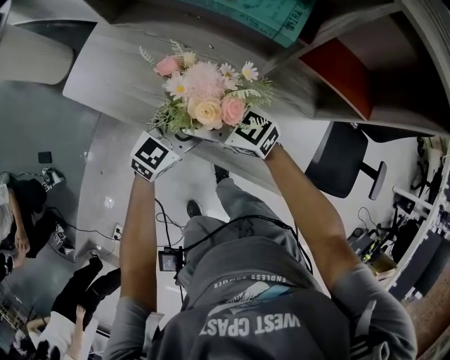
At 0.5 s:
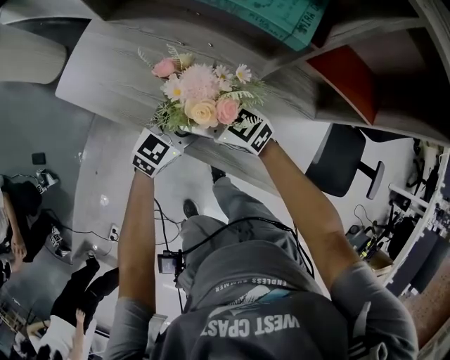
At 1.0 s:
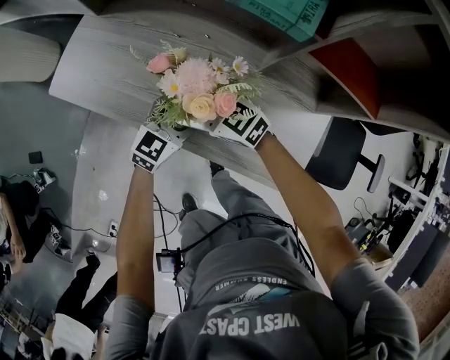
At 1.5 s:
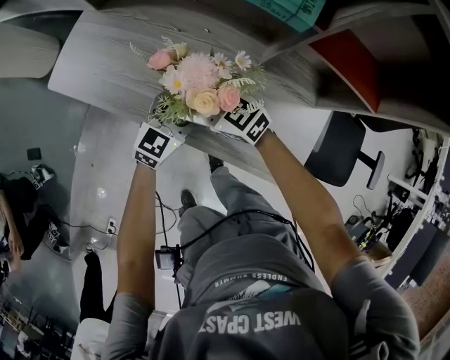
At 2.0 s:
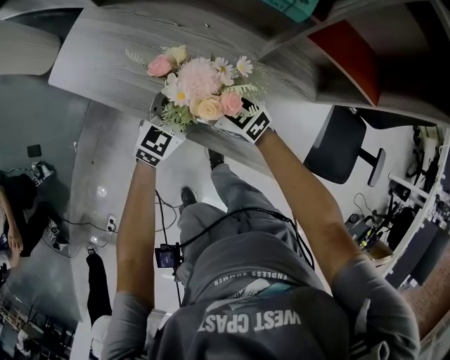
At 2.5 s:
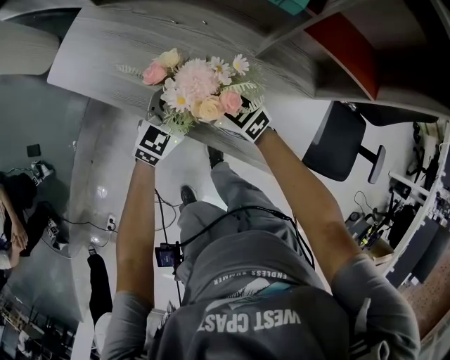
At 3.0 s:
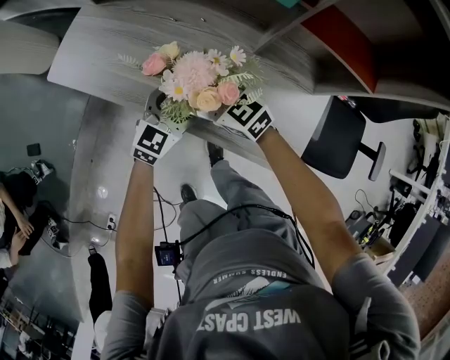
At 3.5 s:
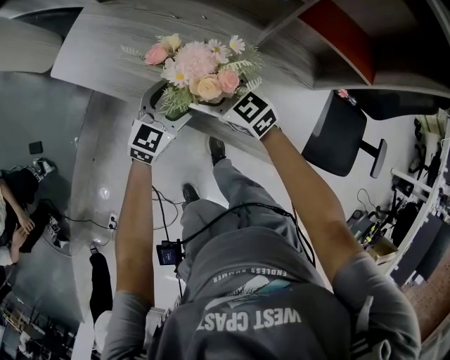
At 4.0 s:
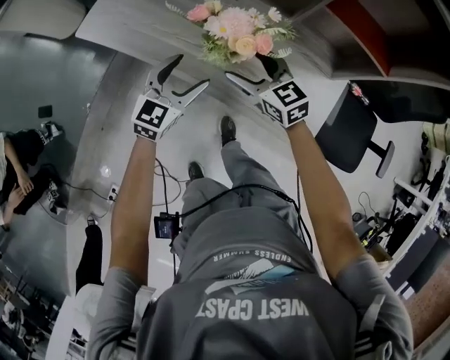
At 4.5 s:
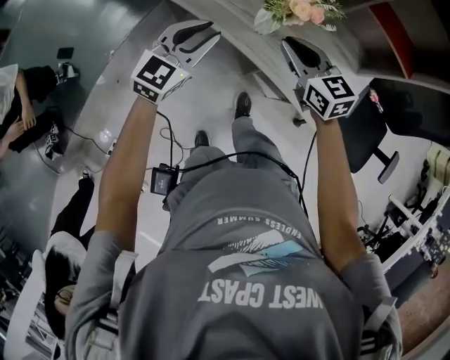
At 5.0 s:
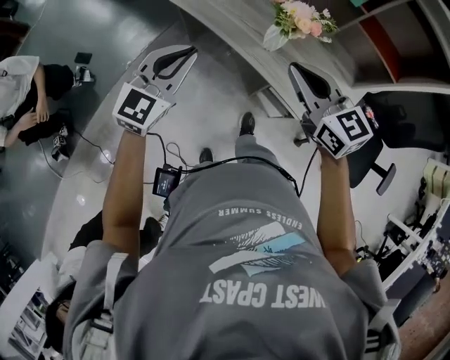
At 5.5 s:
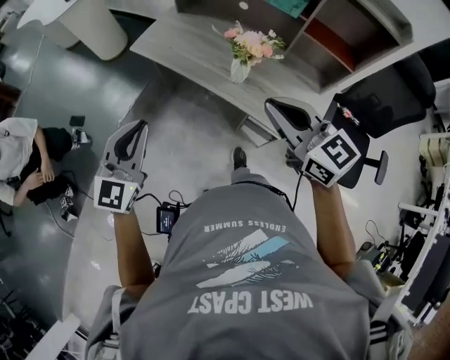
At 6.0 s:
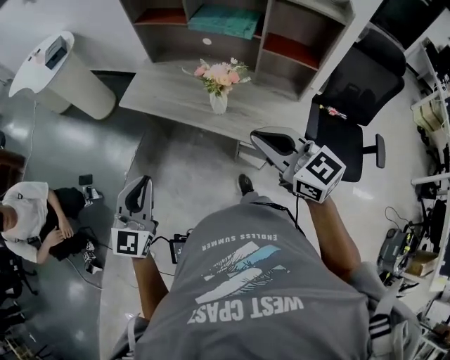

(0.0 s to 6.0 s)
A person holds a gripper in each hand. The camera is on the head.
0.0 s - 2.0 s: Both grippers travel together downward, approximately 5 cm.
2.0 s - 4.0 s: The left gripper is displaced to the left by approximately 10 cm. The right gripper heads to the right, covering approximately 5 cm.
4.0 s - 6.0 s: The left gripper moves upward, backward and to the left, about 35 cm, turns by about 20 degrees, and closes up. Meanwhile the right gripper heads upward and backward, covering about 35 cm, and closes its fingers.

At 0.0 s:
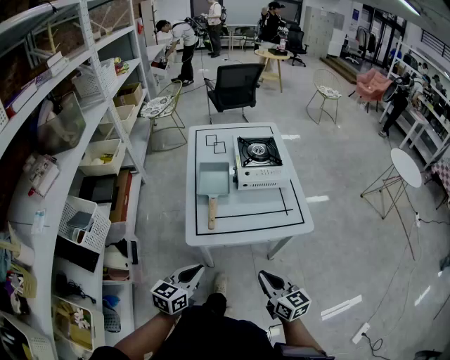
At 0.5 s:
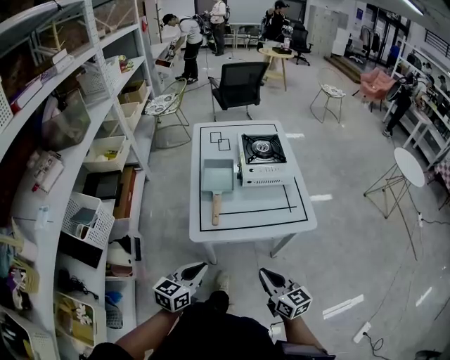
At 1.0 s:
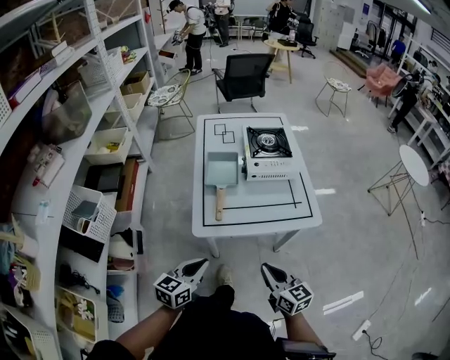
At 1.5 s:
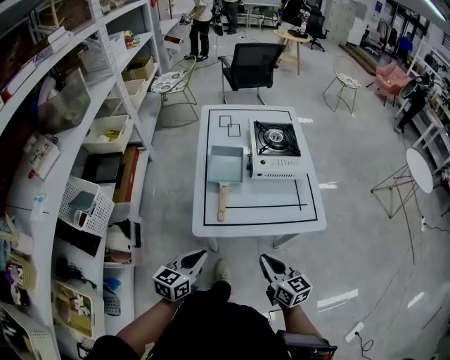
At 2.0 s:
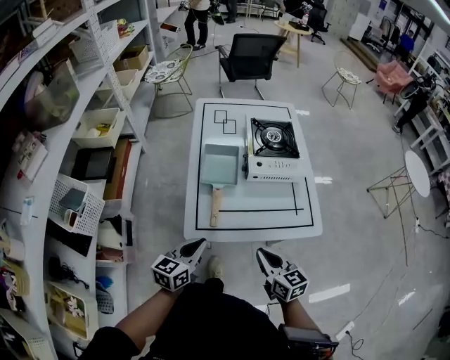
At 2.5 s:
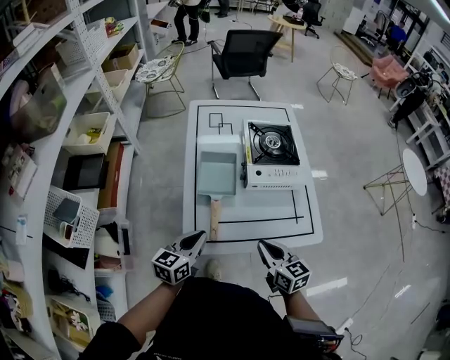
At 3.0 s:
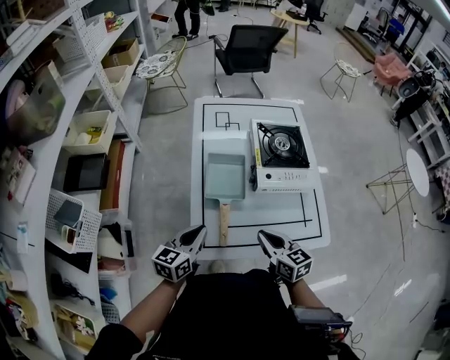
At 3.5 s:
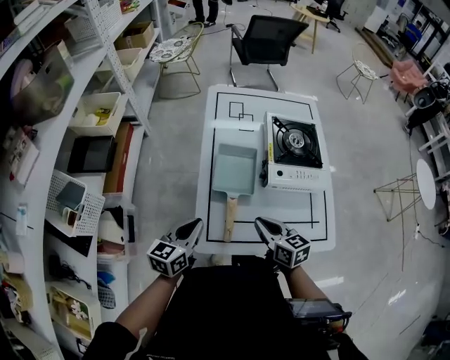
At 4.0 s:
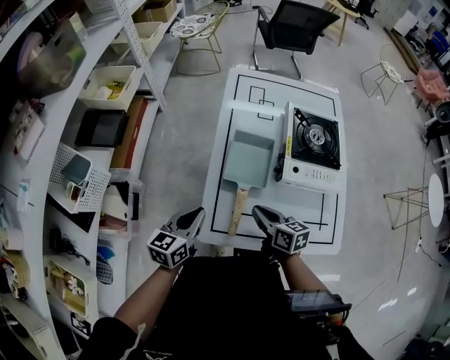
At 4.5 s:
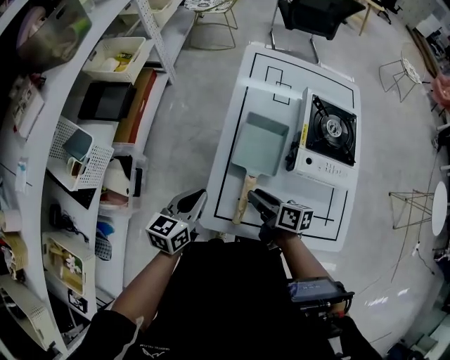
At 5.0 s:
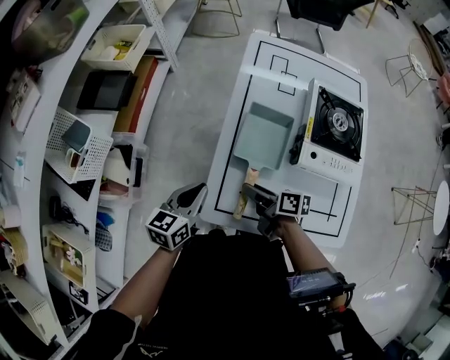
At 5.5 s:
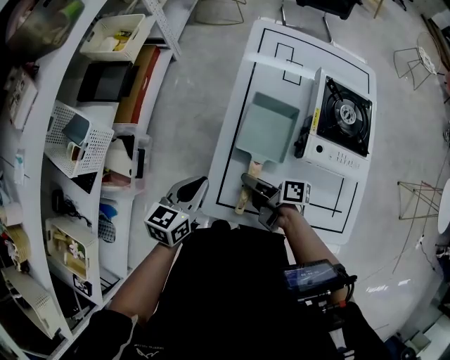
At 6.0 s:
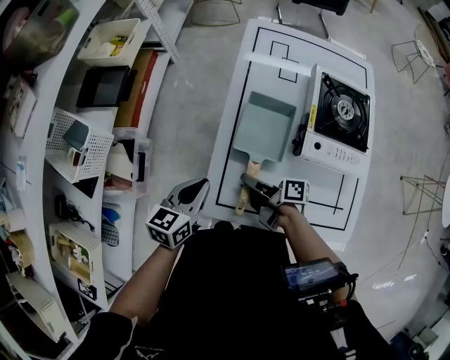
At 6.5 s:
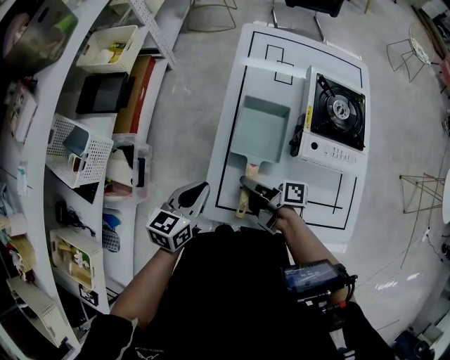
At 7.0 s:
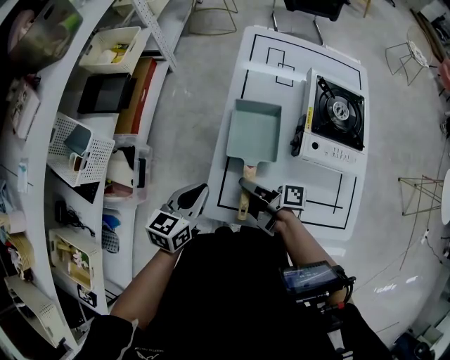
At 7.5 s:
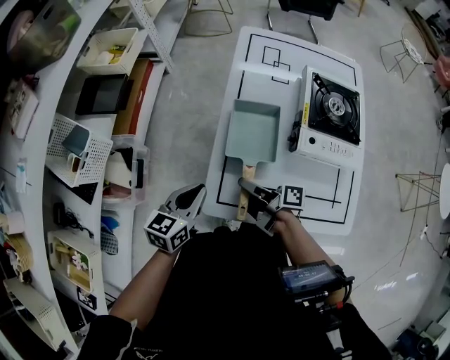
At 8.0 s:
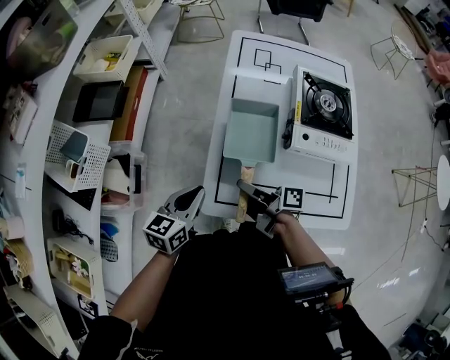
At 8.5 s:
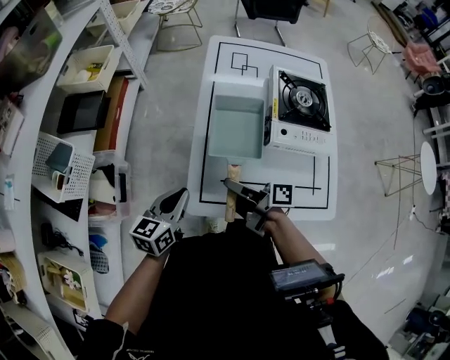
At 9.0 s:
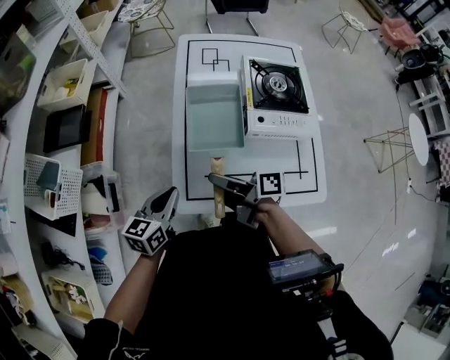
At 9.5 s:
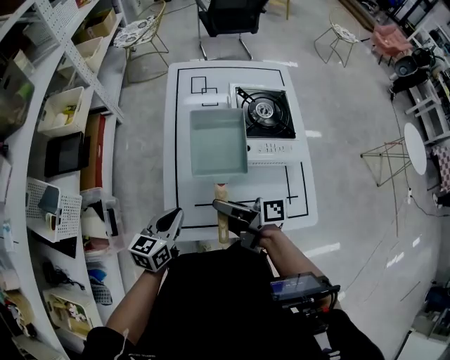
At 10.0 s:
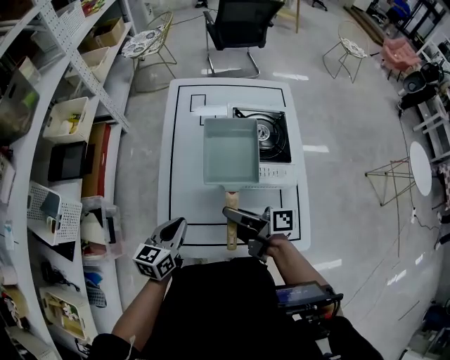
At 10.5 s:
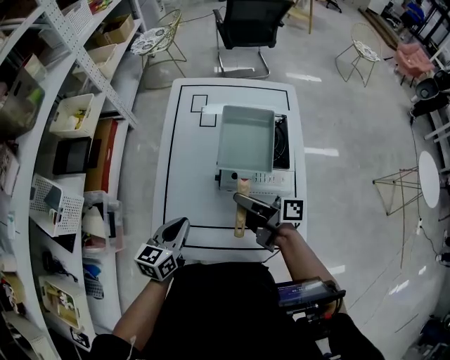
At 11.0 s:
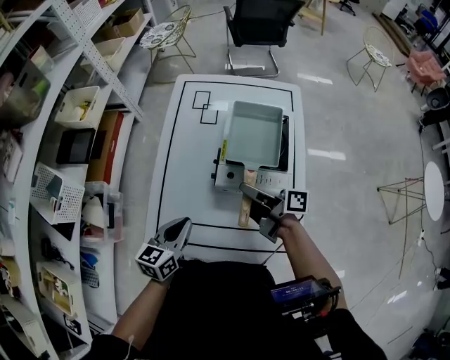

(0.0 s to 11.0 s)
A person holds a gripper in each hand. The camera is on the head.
0.0 s - 2.0 s: Both grippers travel together forward, some 10 cm.
2.0 s - 3.5 s: Both grippers move forward and to the left, roughly 15 cm.
3.5 s - 5.5 s: The right gripper travels downward, to the left and forward by some 15 cm, rolls clockwise, seen from behind, by some 50 degrees, and opens its fingers.
5.5 s - 7.5 s: The grippers move only a little.
7.5 s - 9.0 s: The right gripper shifts roughly 10 cm upward.
9.0 s - 11.0 s: The grippers both shift to the right by roughly 20 cm.

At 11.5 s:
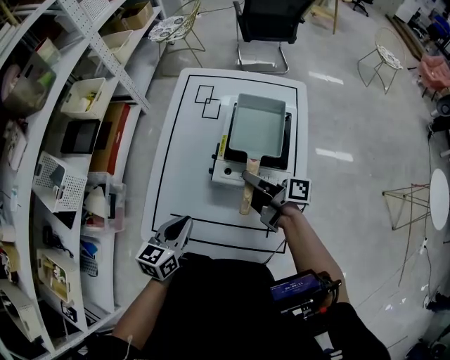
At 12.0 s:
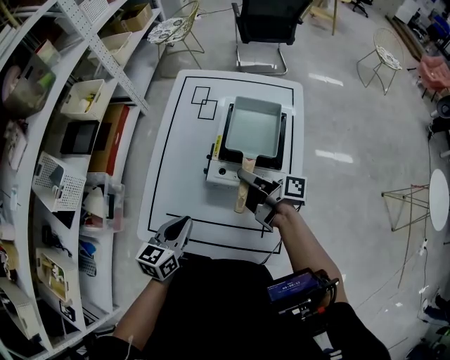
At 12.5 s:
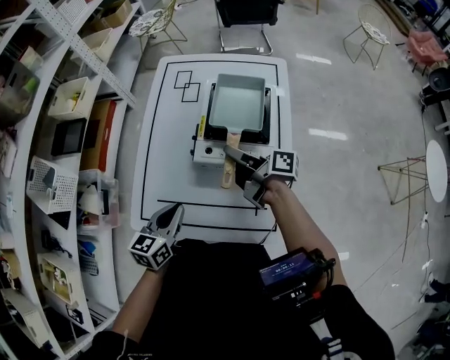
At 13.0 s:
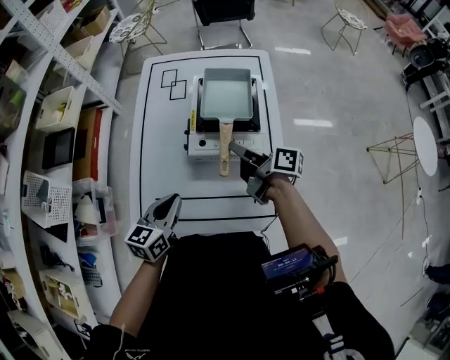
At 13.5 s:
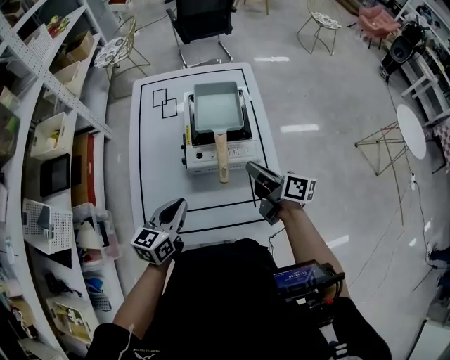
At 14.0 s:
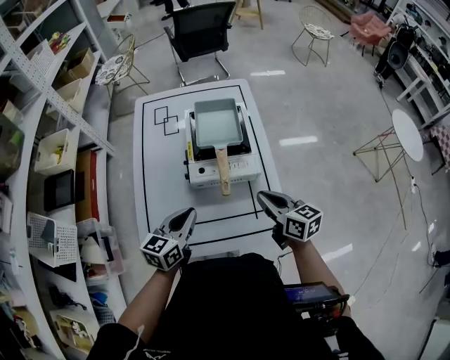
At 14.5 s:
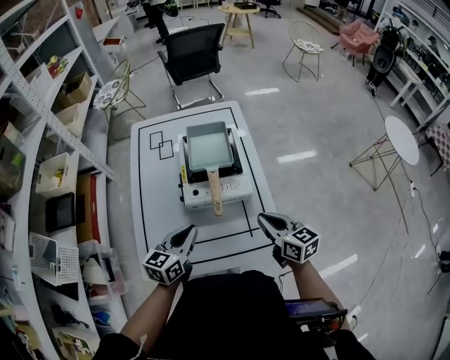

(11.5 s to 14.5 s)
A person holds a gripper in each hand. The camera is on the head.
11.5 s - 13.0 s: The grippers move only a little.
13.0 s - 14.5 s: The right gripper travels backward and to the right by roughly 15 cm, rotates around the line of its fingers by roughly 50 degrees, counterclockwise from behind, and closes up; the left gripper is displaced to the right by approximately 5 cm.

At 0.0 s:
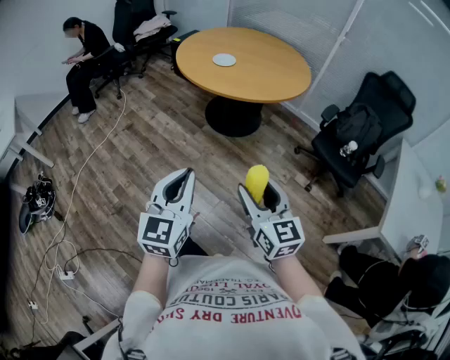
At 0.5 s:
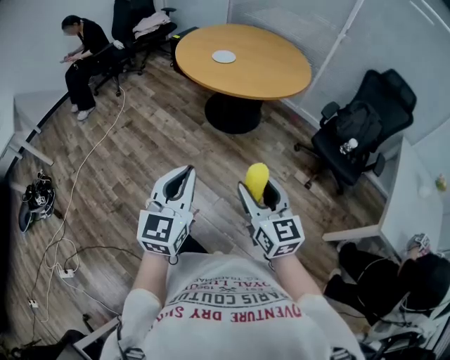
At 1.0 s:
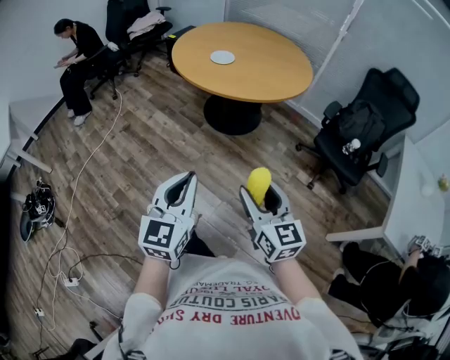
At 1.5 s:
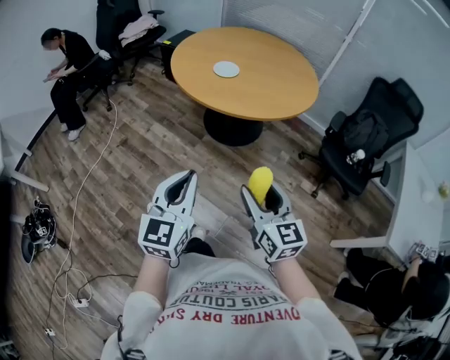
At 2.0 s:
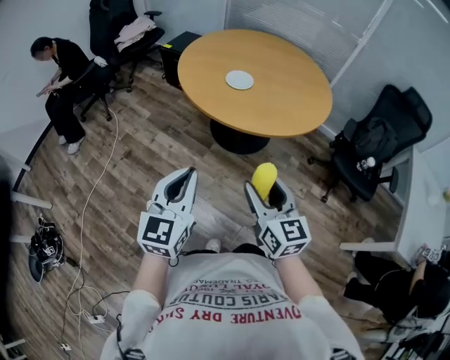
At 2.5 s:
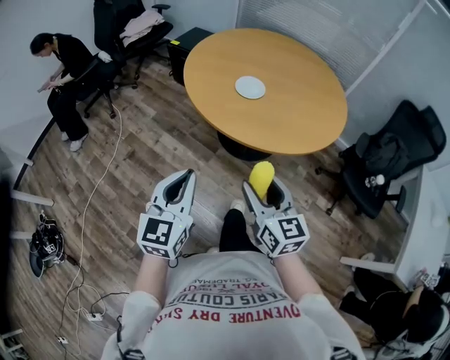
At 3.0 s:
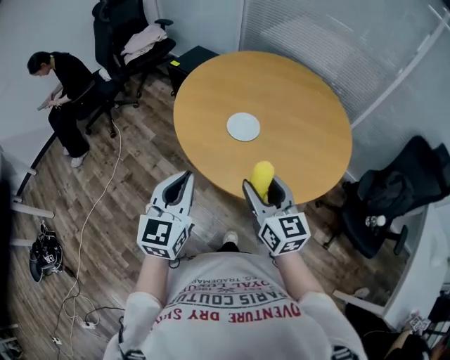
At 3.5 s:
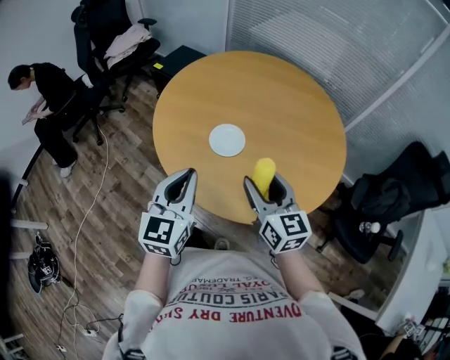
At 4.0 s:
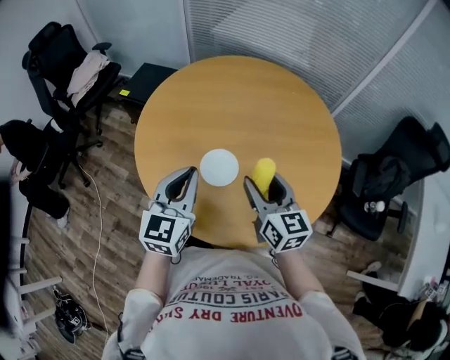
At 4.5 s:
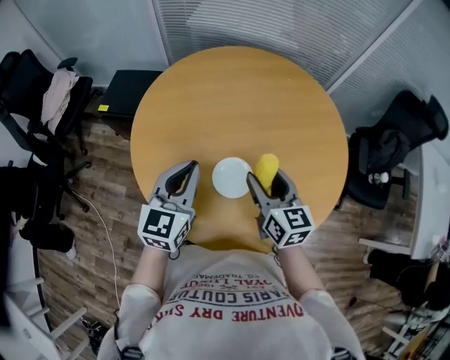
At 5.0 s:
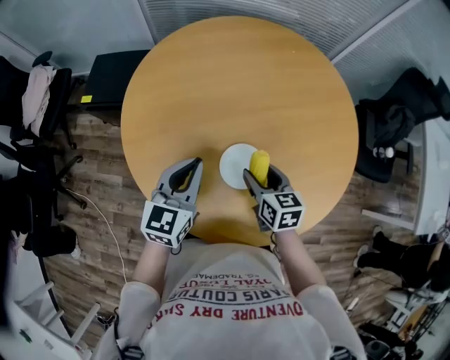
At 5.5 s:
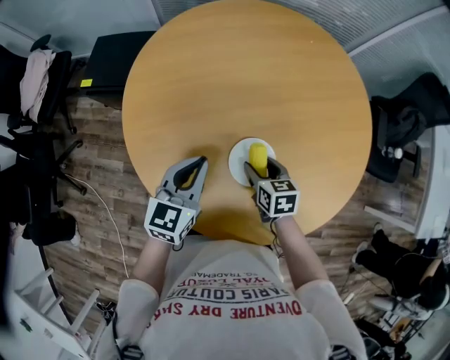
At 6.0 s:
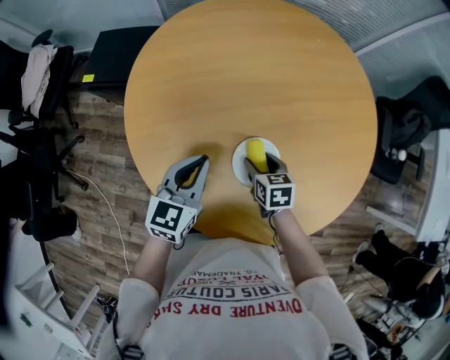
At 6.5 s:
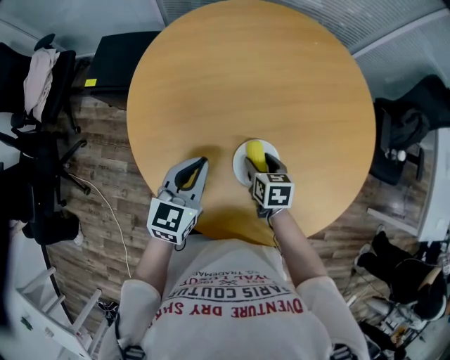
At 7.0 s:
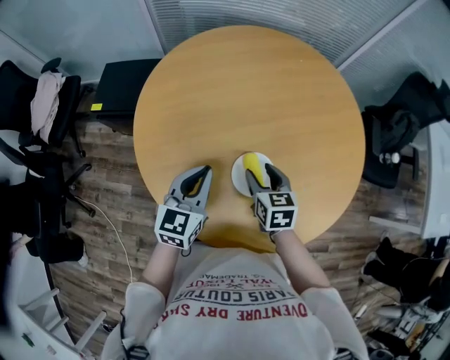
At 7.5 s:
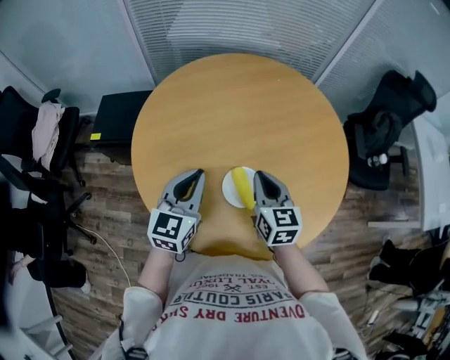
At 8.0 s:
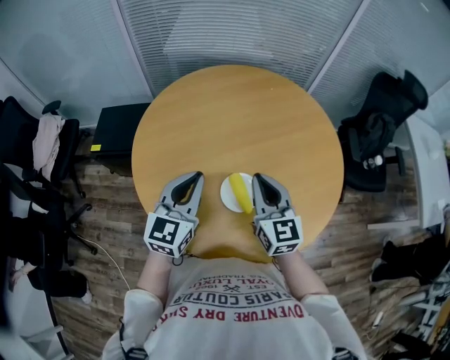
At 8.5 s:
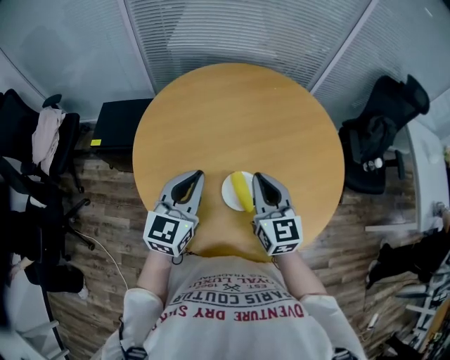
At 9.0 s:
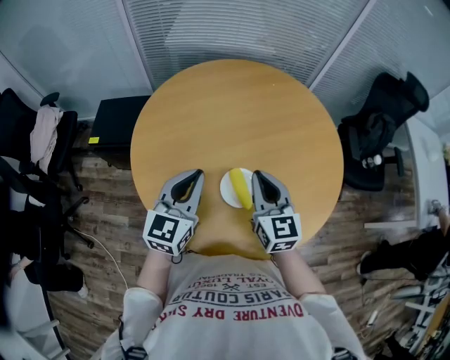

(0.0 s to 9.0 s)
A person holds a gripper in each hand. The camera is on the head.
0.0 s - 2.0 s: Both grippers travel together forward and to the left, roughly 35 cm.
2.0 s - 4.5 s: The pair of grippers is taken approximately 60 cm. The left gripper changes its angle by some 20 degrees, while the right gripper swivels roughly 20 degrees.
4.5 s - 7.0 s: The grippers both shift downward by roughly 10 cm. The right gripper changes its angle by some 20 degrees.
7.0 s - 9.0 s: The right gripper travels upward by roughly 15 cm, turns by approximately 30 degrees, and closes up, while the left gripper shifts about 10 cm upward.
